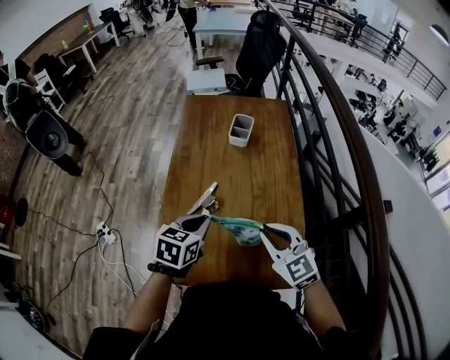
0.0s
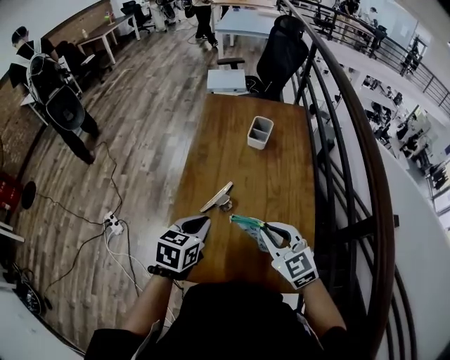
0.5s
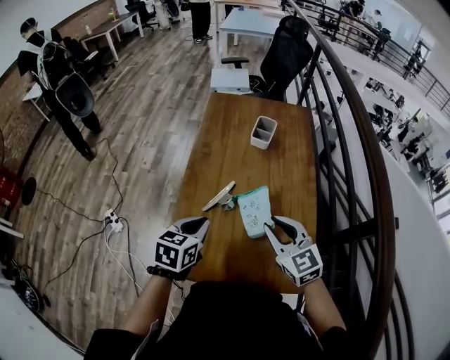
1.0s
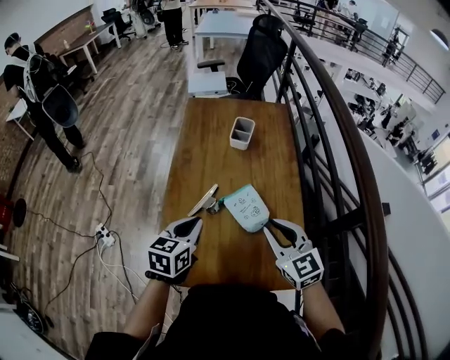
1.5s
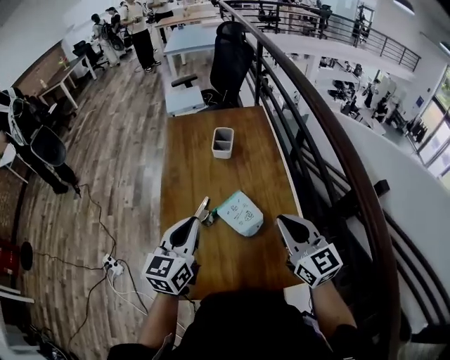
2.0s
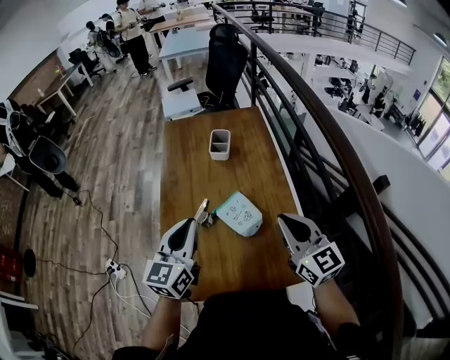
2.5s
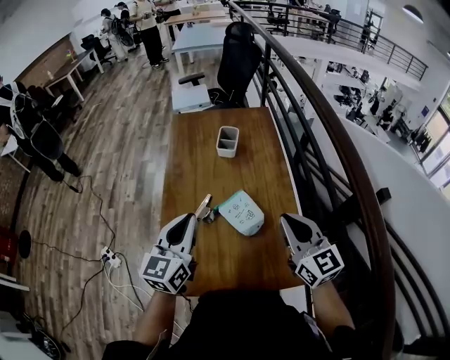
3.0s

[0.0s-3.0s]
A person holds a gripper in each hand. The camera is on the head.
0.0s to 1.5s: There are only small adjustments of the grippers.
1.5s to 3.0s: The left gripper travels upward by roughly 10 cm, and changes its angle by about 30 degrees, while the right gripper moves upward and to the right, some 10 cm.

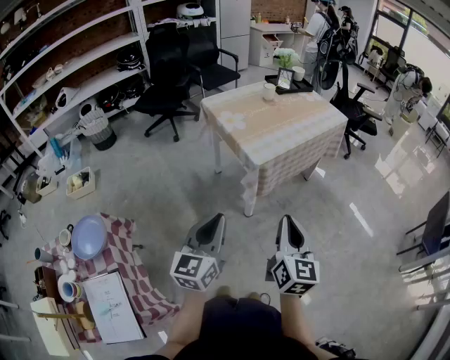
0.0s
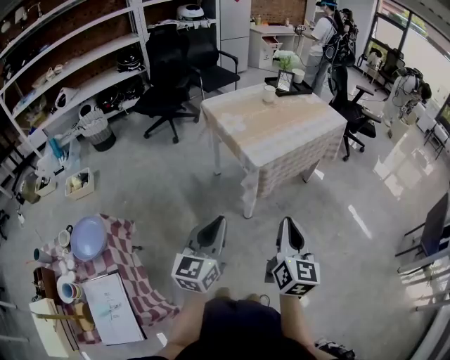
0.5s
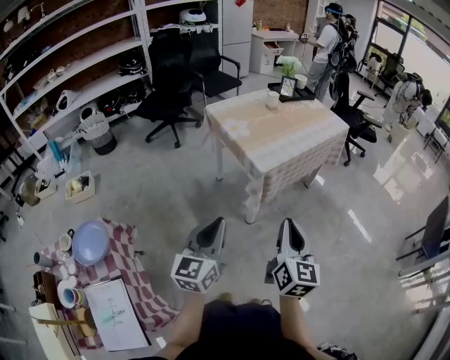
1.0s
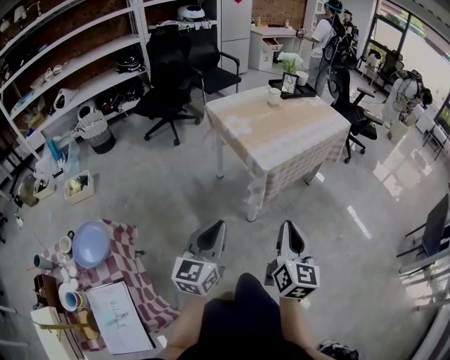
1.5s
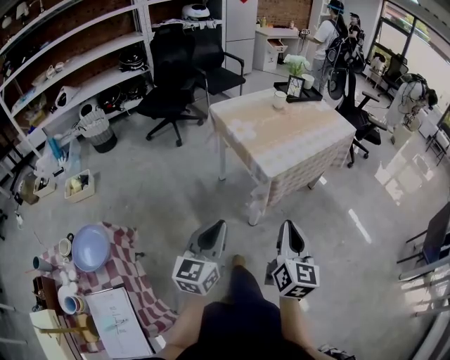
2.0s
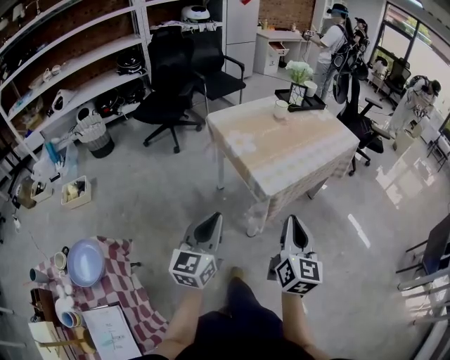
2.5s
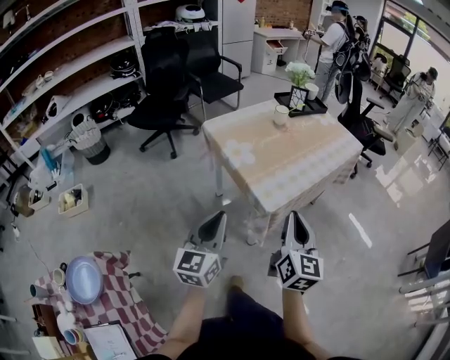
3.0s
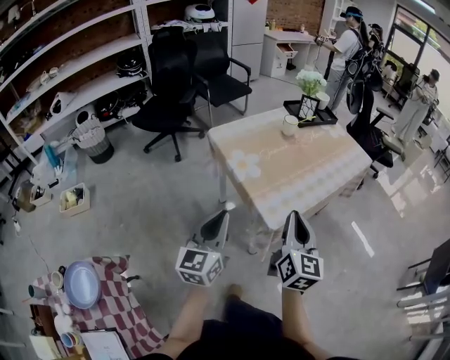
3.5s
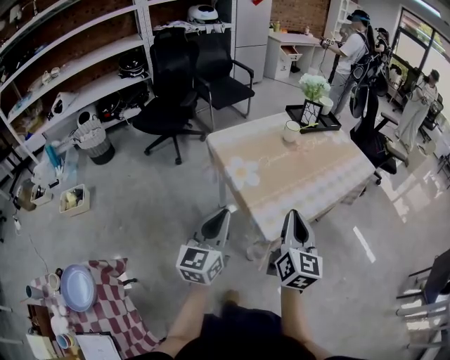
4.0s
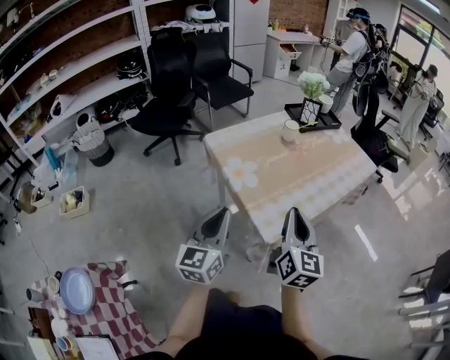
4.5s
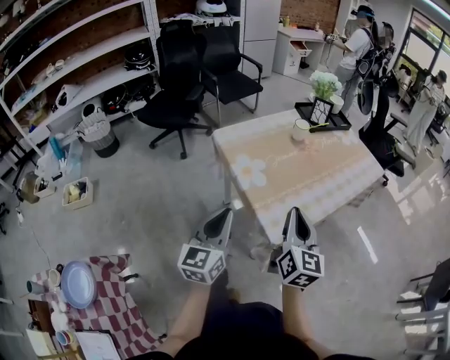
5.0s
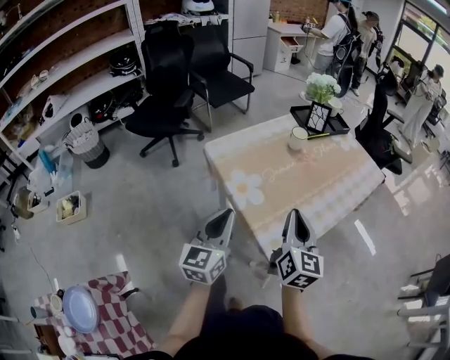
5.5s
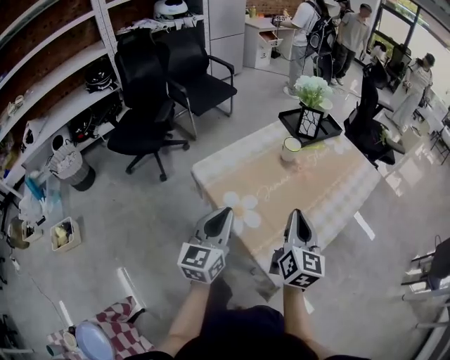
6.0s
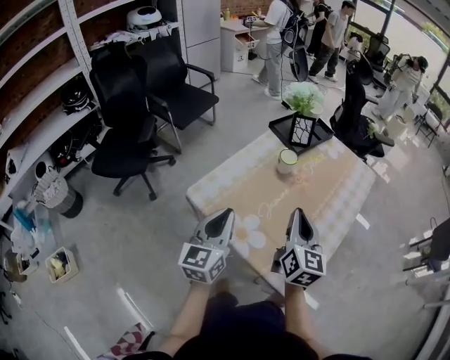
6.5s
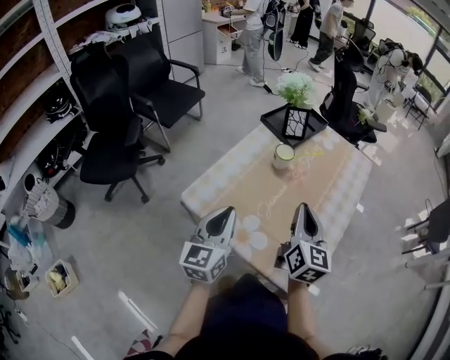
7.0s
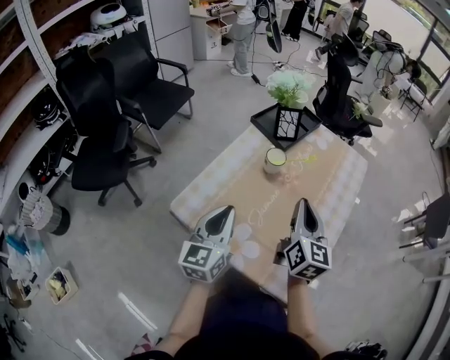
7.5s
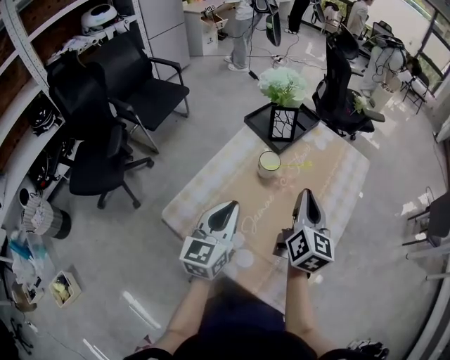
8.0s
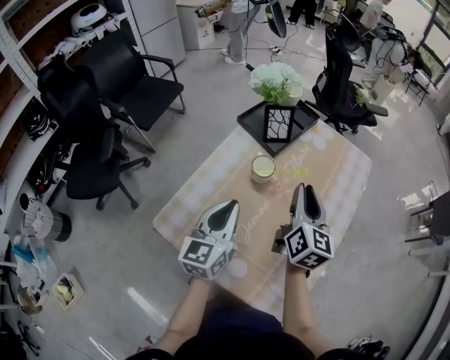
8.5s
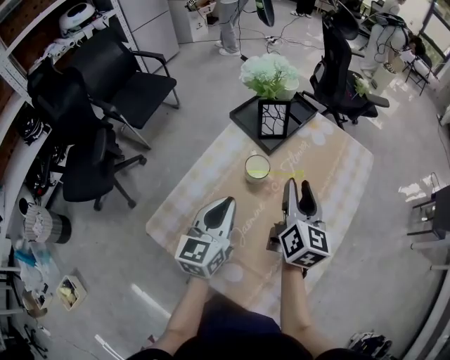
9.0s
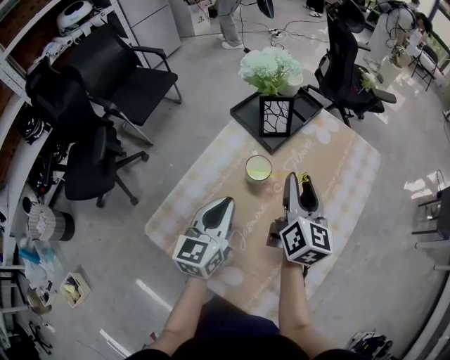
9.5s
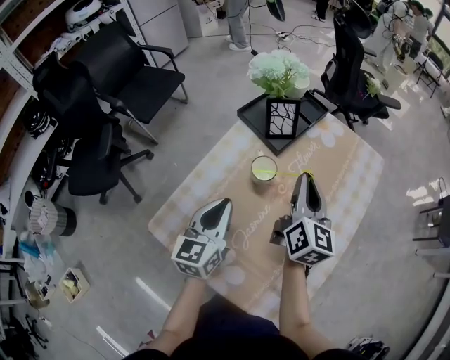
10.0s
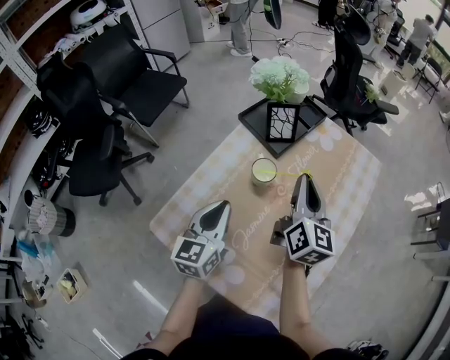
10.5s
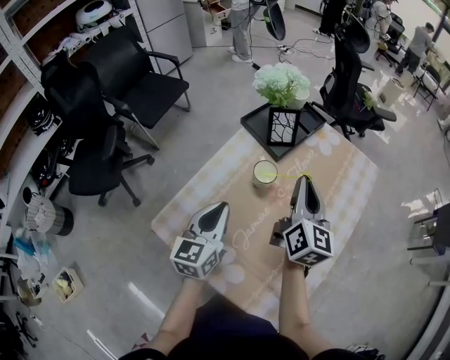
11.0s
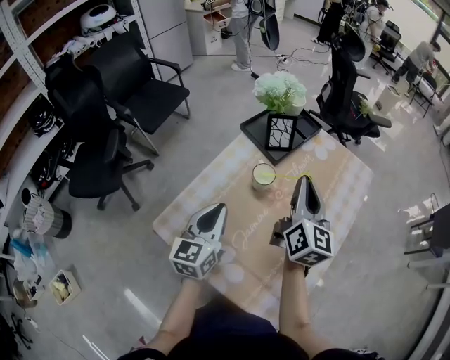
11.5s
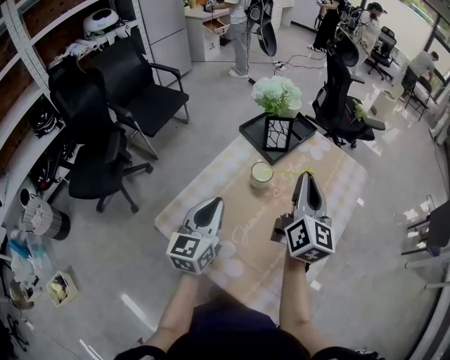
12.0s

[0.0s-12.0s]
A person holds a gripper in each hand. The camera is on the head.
0.0s to 2.0s: Both grippers move to the left, roughly 5 cm.
2.0s to 4.0s: Both grippers move forward, approximately 30 cm.
4.0s to 6.0s: Both grippers move forward, some 20 cm.
6.0s to 8.0s: Both grippers travel together forward, some 20 cm. The right gripper turns by approximately 20 degrees.
8.0s to 10.0s: The left gripper shifts roughly 10 cm forward and downward. The right gripper goes about 10 cm forward, and opens, then closes again.
10.0s to 12.0s: The right gripper moves upward, approximately 10 cm. The left gripper goes approximately 5 cm upward.

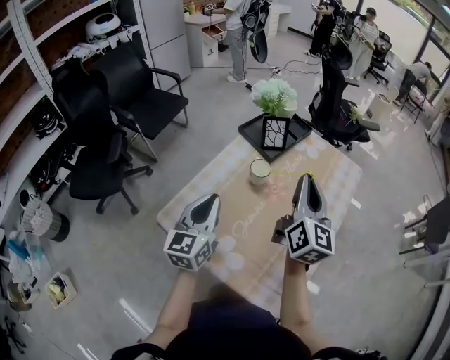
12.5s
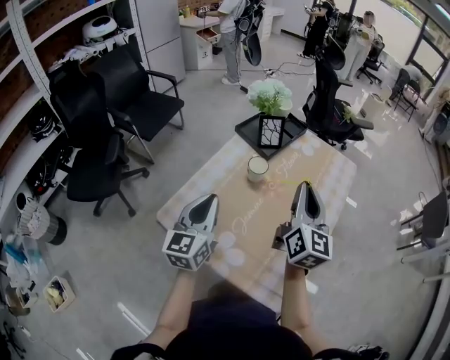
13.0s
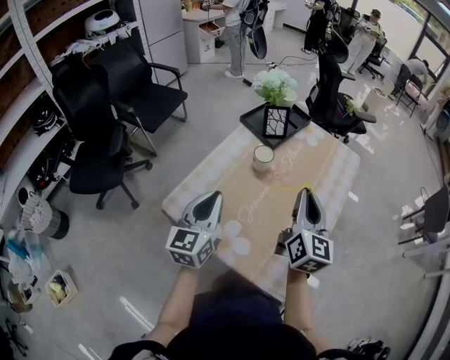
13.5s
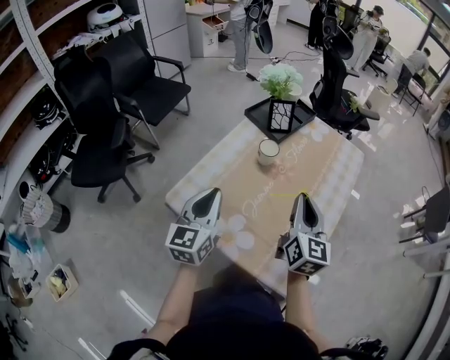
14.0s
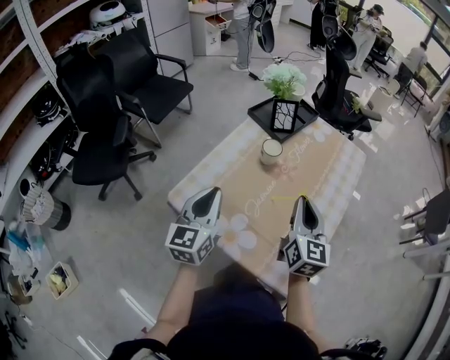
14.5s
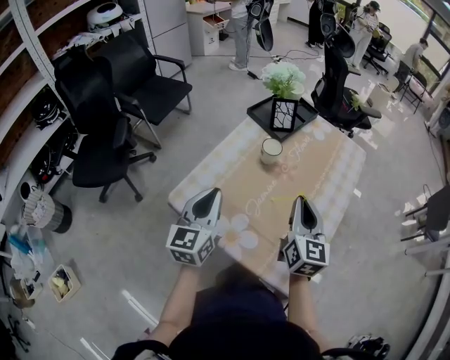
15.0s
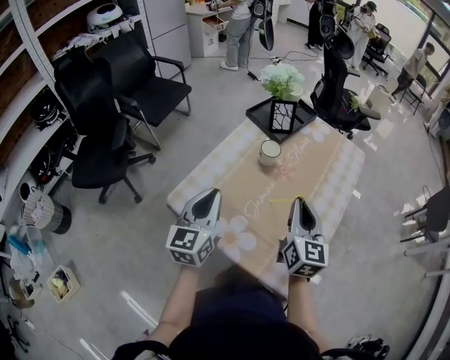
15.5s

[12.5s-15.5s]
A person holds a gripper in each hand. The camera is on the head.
12.5s to 14.0s: The right gripper shifts some 10 cm backward and downward; the left gripper moves backward, about 5 cm.
14.0s to 15.5s: The grippers move only a little.

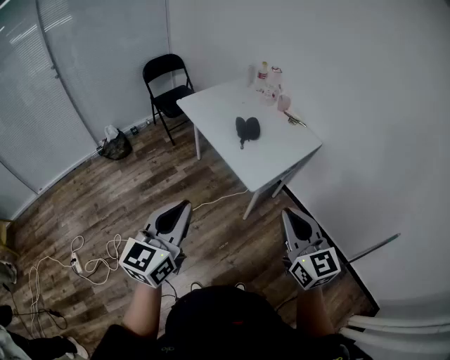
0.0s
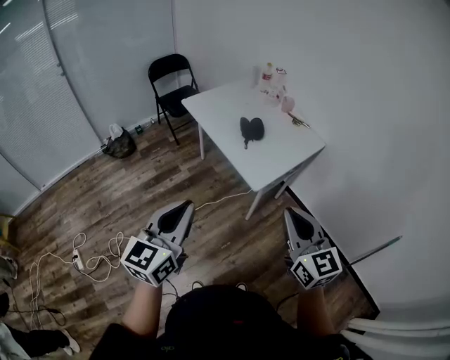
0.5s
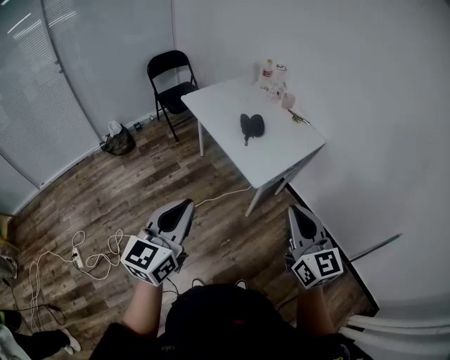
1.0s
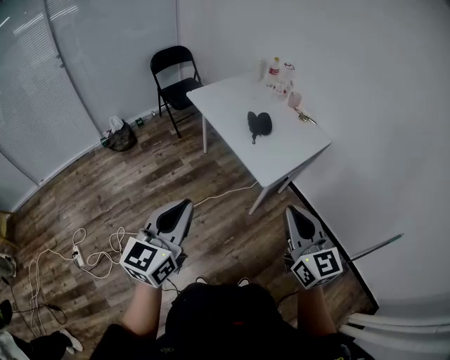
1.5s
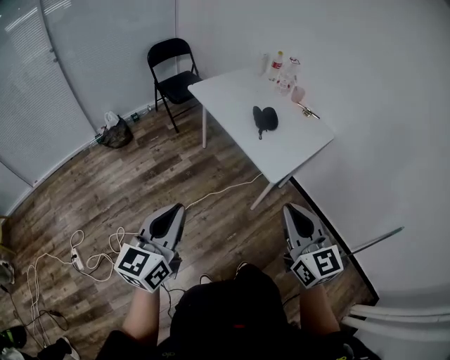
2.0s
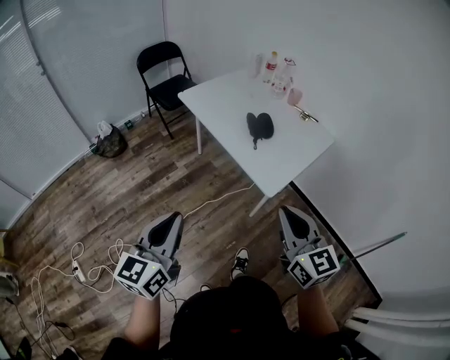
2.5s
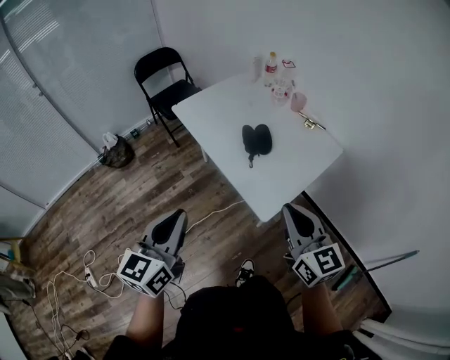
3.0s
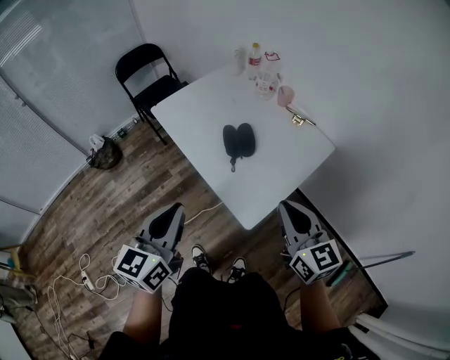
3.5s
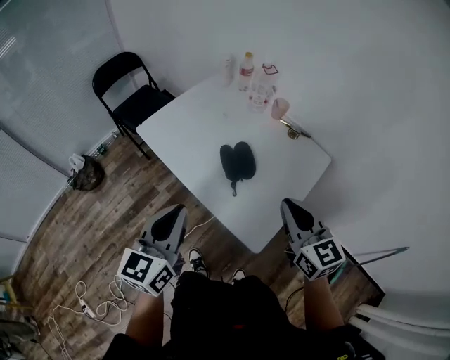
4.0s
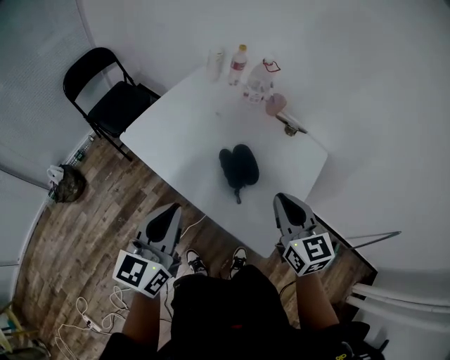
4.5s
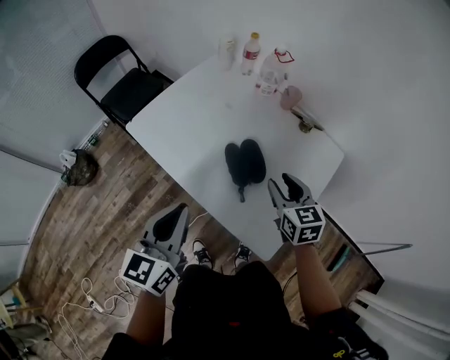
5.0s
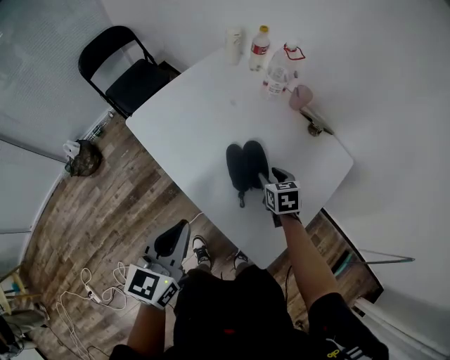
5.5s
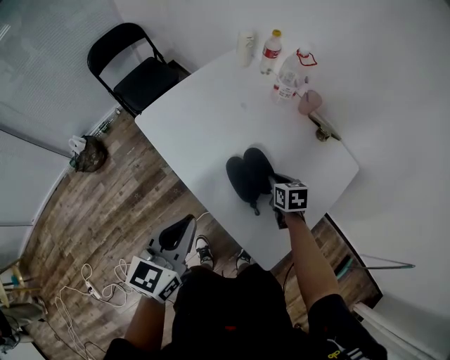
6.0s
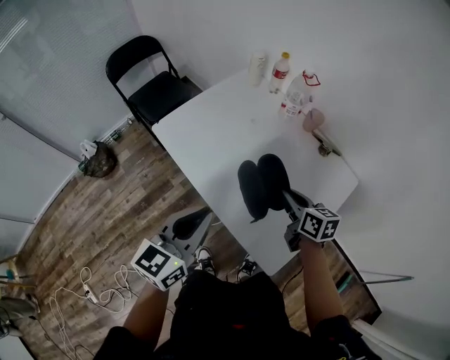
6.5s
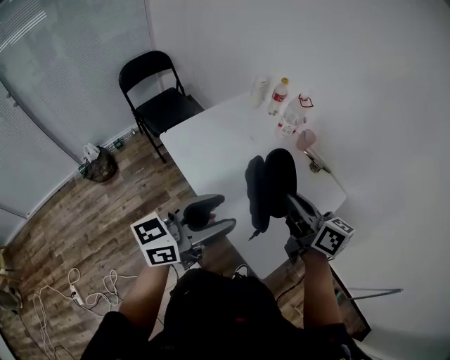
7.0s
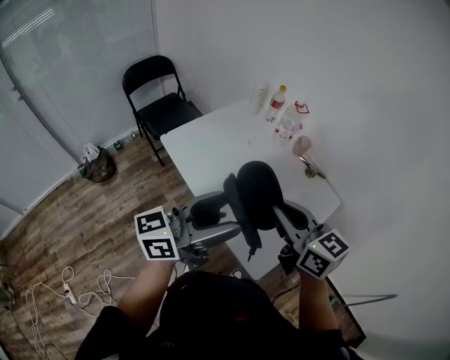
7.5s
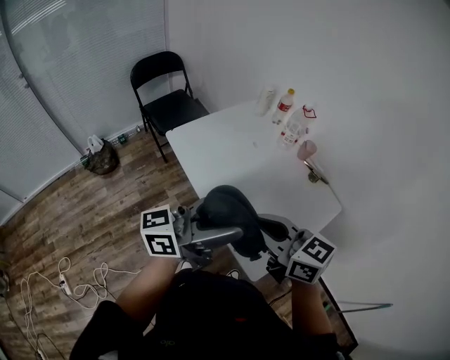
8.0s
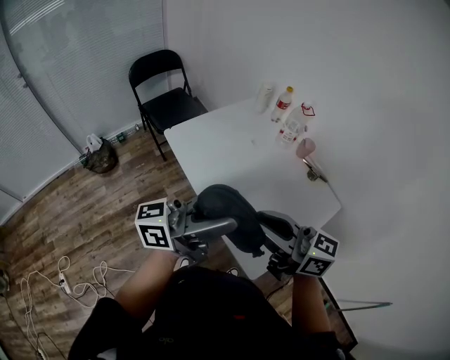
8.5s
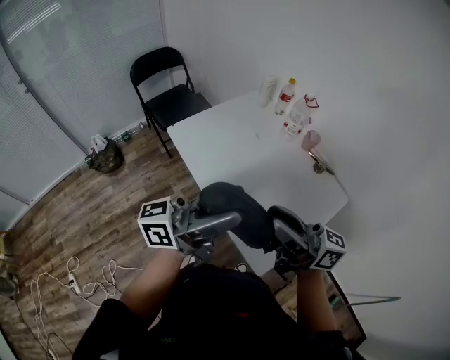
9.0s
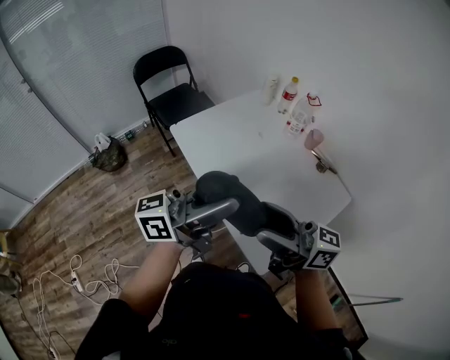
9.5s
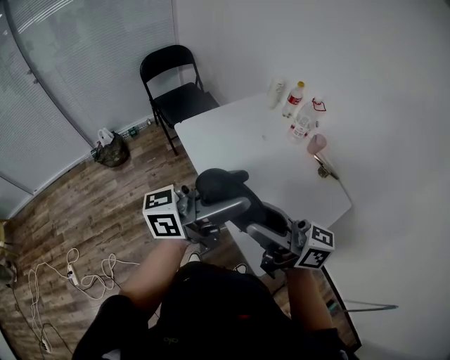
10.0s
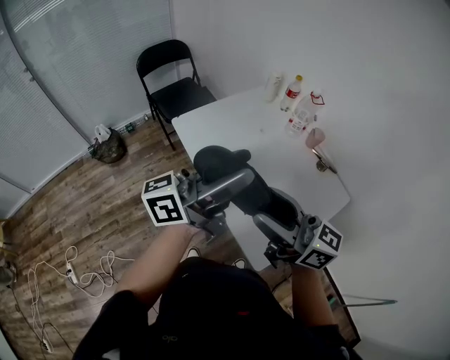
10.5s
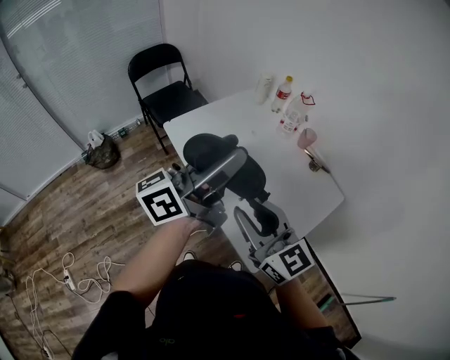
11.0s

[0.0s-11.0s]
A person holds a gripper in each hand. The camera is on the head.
0.0s to 2.0s: The grippers both shift to the left by roughly 15 cm.
2.0s to 3.5s: Both grippers travel together forward and to the right, some 35 cm.
3.5s to 5.5s: The right gripper is displaced forward and downward by some 40 cm, tilts its fingers about 40 degrees downward, and opens. The left gripper moves forward and downward, some 25 cm.
5.5s to 7.5s: The right gripper moves upward and backward, some 40 cm, tips its fingers upward by some 40 degrees, and closes. The left gripper shifts approximately 20 cm upward, tips its fingers upward by roughly 40 degrees, and opens up.
7.5s to 9.0s: The right gripper swivels some 40 degrees.
9.0s to 11.0s: The right gripper ends up roughly 5 cm from where it was, rotates around the line of its fingers by roughly 40 degrees, counterclockwise from behind, and opens and closes again. Meanwhile the left gripper goes some 5 cm forward.
